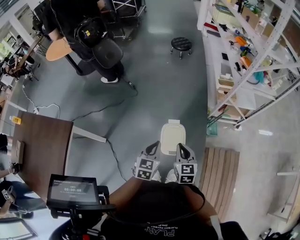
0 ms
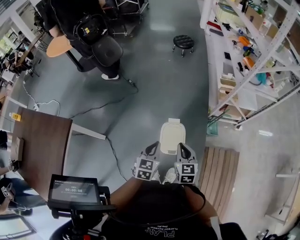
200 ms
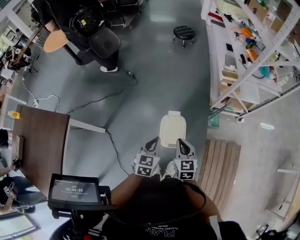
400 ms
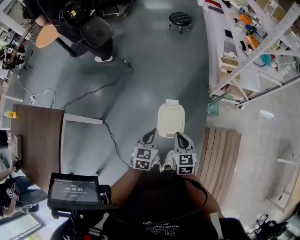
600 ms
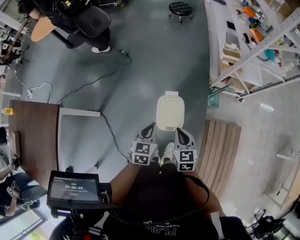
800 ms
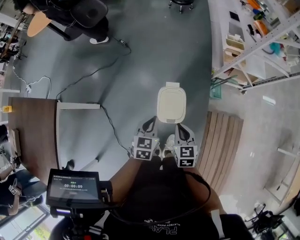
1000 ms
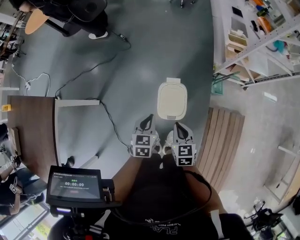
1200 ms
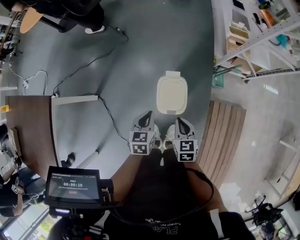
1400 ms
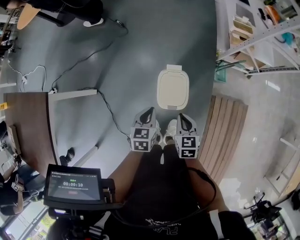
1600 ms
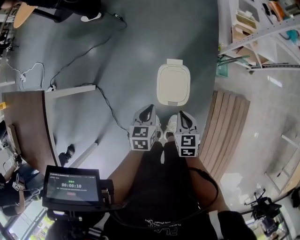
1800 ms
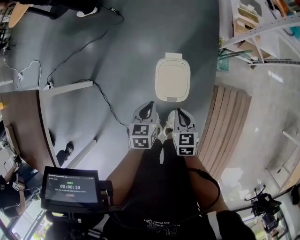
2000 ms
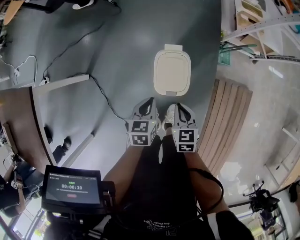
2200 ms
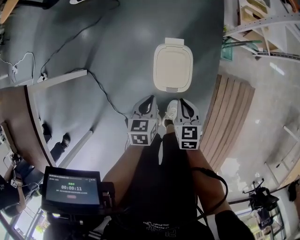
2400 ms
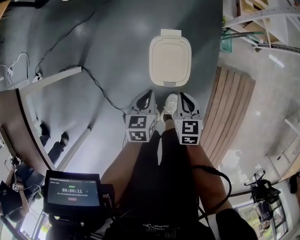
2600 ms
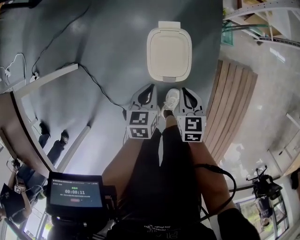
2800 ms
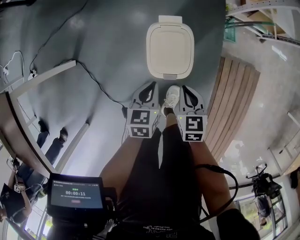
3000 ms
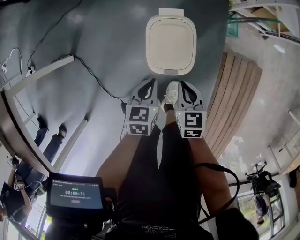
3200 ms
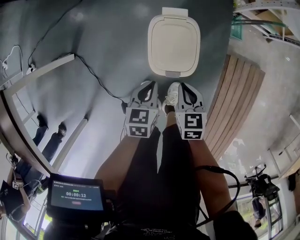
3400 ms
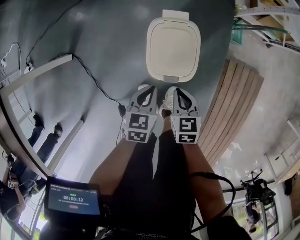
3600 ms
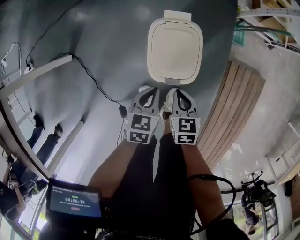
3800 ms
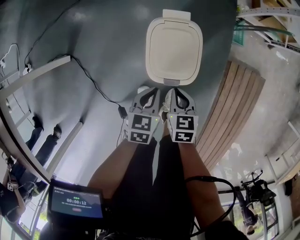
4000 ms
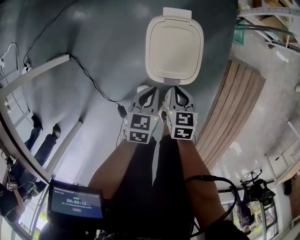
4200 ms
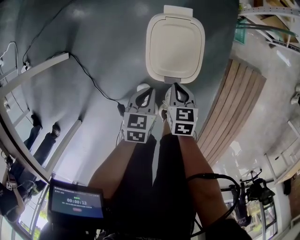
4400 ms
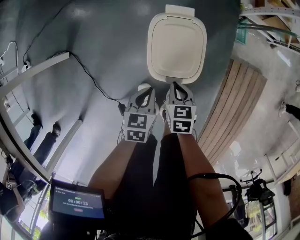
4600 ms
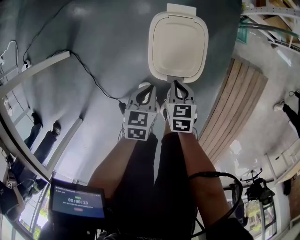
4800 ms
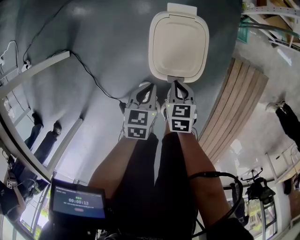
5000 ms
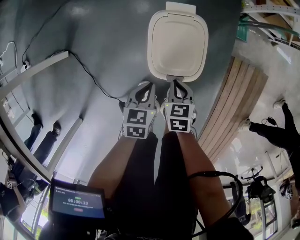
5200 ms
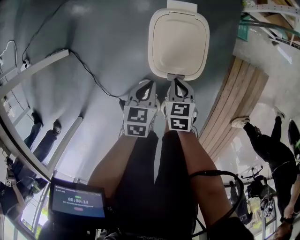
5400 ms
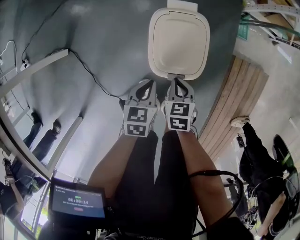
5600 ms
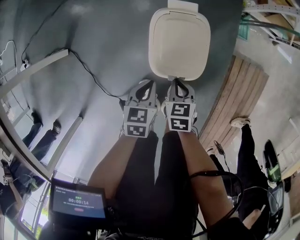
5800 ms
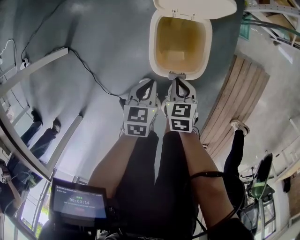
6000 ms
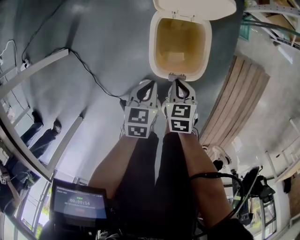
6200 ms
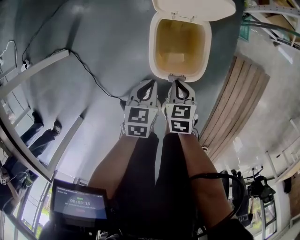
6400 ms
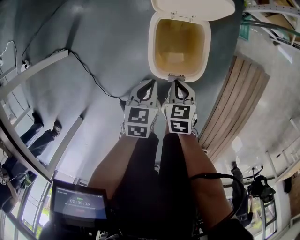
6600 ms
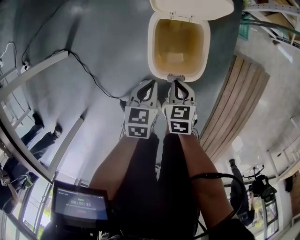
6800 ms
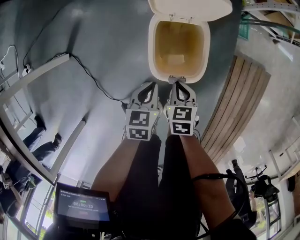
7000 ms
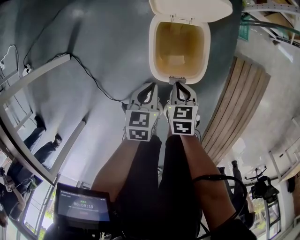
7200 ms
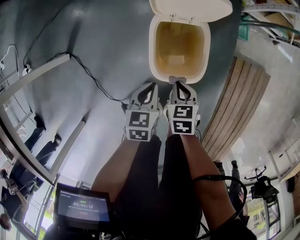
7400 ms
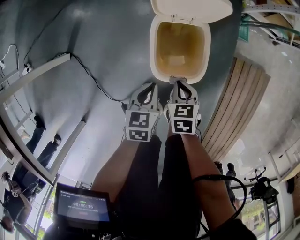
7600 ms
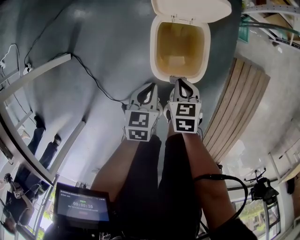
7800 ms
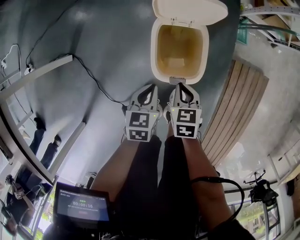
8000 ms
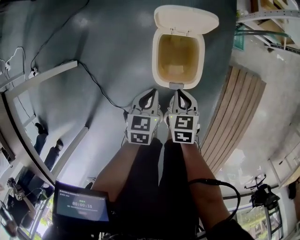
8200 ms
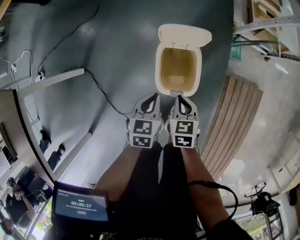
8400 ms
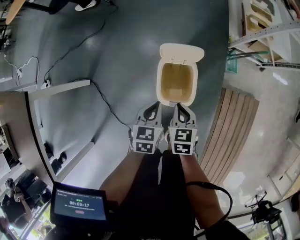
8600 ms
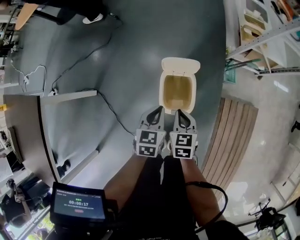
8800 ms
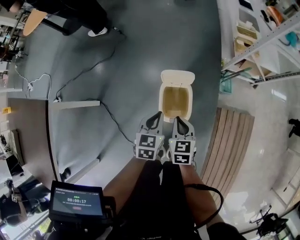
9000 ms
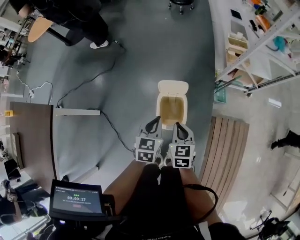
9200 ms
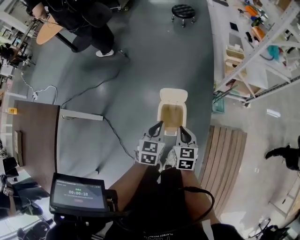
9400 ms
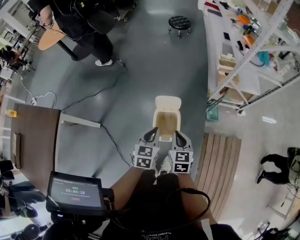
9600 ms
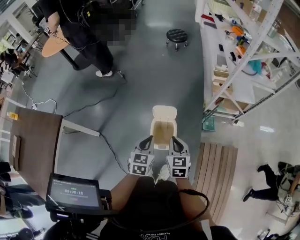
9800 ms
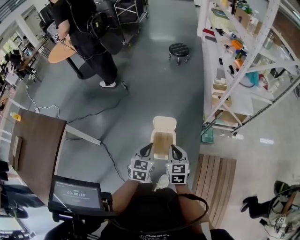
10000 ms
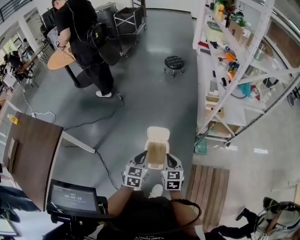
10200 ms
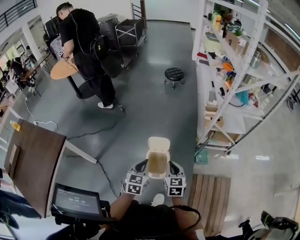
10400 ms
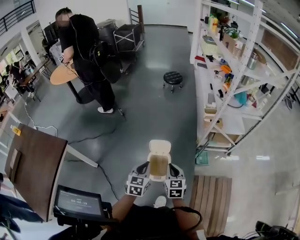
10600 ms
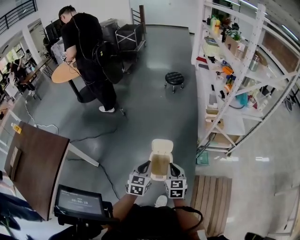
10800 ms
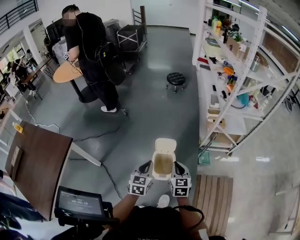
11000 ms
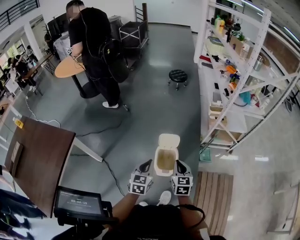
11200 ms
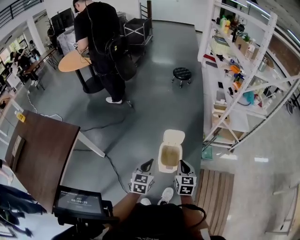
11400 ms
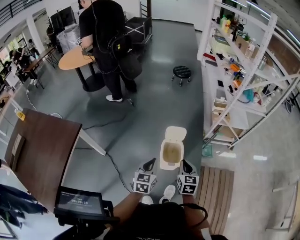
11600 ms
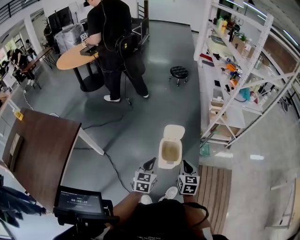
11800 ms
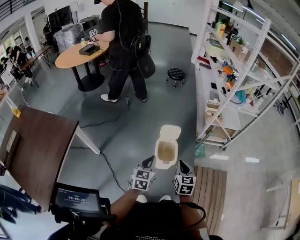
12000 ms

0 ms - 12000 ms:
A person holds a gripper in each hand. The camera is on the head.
0 ms - 1600 ms: Both grippers move downward, some 15 cm. The left gripper swivels roughly 20 degrees.
1600 ms - 3000 ms: Both grippers travel together downward, approximately 20 cm.
3000 ms - 4400 ms: Both grippers travel together downward, some 15 cm.
4400 ms - 6000 ms: The grippers make only small movements.
6000 ms - 7600 ms: Both grippers stay put.
7600 ms - 9000 ms: Both grippers move upward, approximately 30 cm. The right gripper changes its angle by approximately 20 degrees.
9000 ms - 10400 ms: The left gripper is displaced upward and backward by about 25 cm. Meanwhile the right gripper moves upward, roughly 20 cm.
10400 ms - 12000 ms: The grippers both shift backward and to the left by roughly 15 cm.

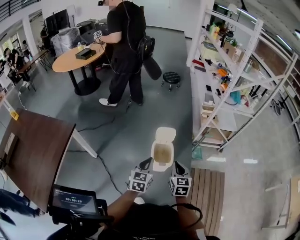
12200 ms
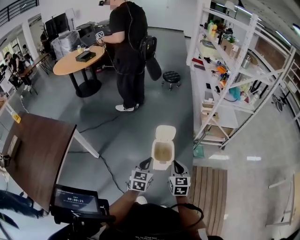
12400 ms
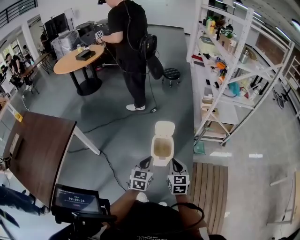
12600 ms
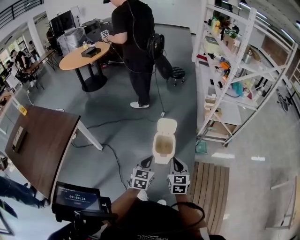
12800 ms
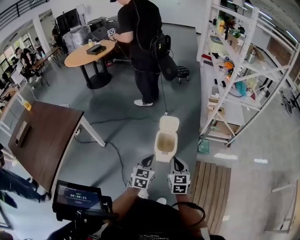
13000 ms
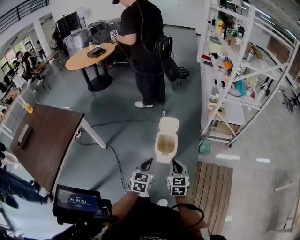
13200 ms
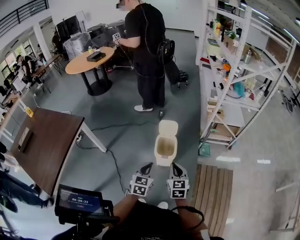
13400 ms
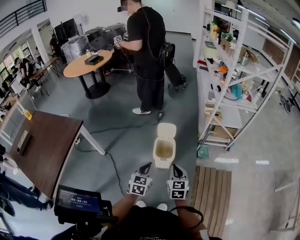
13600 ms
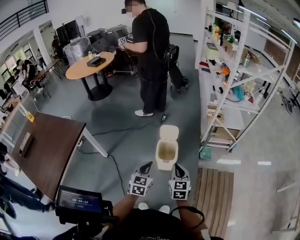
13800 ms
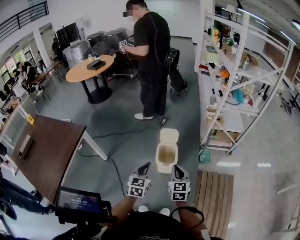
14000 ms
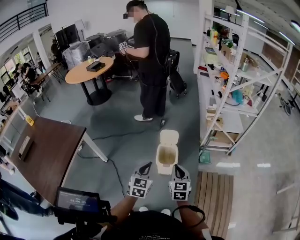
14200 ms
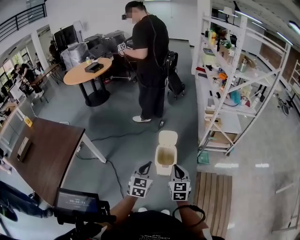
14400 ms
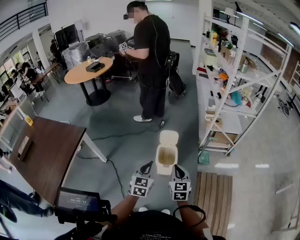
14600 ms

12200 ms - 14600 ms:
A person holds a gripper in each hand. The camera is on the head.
12200 ms - 13400 ms: The grippers both shift backward and to the right by roughly 10 cm.
13400 ms - 14600 ms: The two grippers go about 5 cm upward.

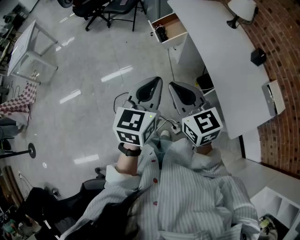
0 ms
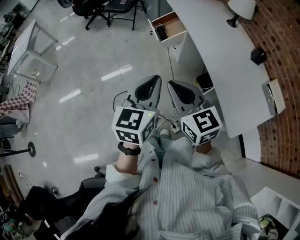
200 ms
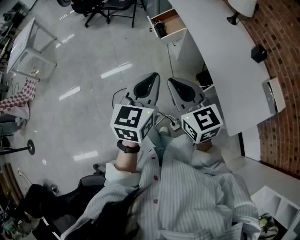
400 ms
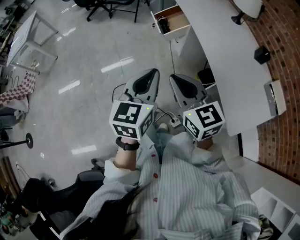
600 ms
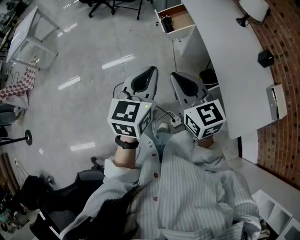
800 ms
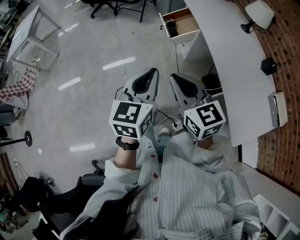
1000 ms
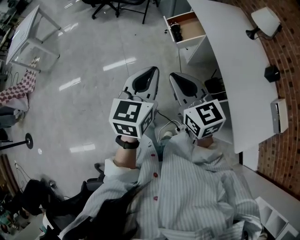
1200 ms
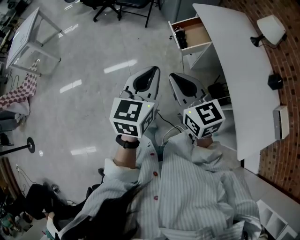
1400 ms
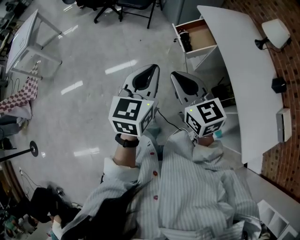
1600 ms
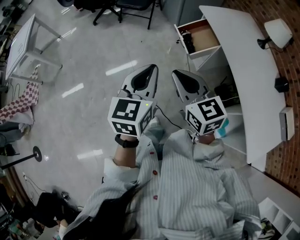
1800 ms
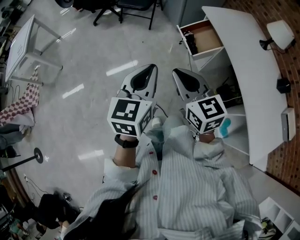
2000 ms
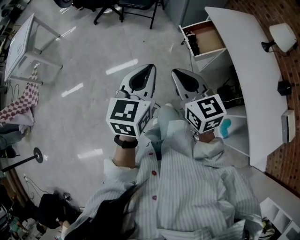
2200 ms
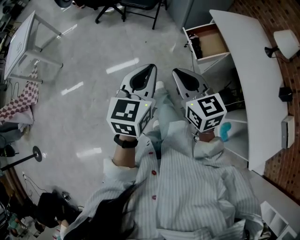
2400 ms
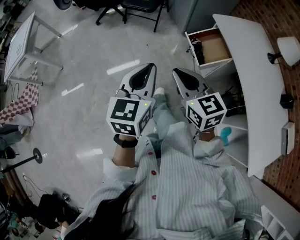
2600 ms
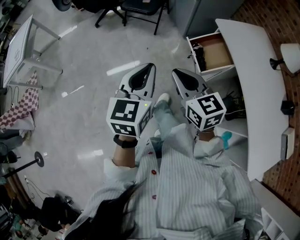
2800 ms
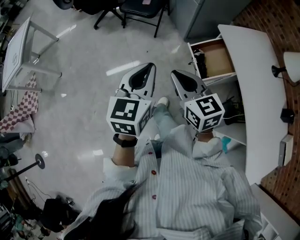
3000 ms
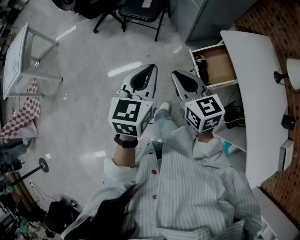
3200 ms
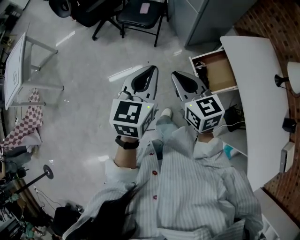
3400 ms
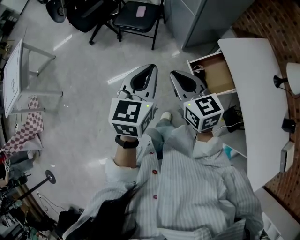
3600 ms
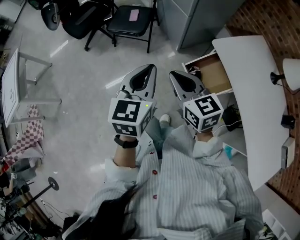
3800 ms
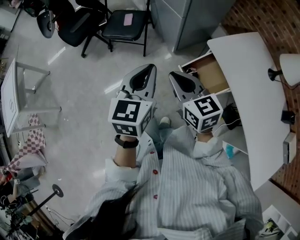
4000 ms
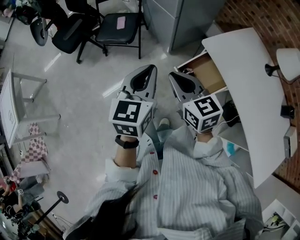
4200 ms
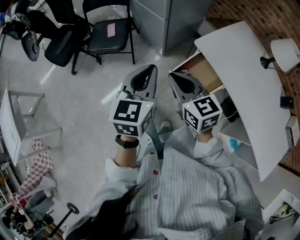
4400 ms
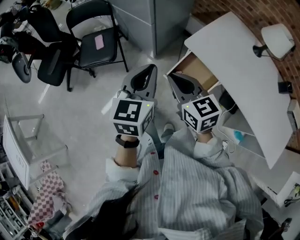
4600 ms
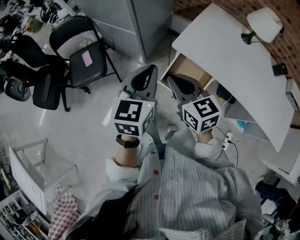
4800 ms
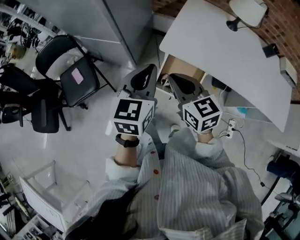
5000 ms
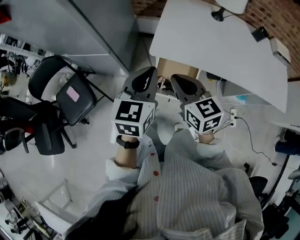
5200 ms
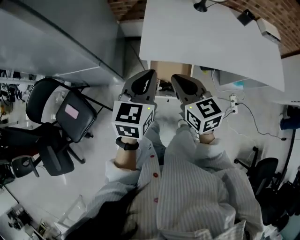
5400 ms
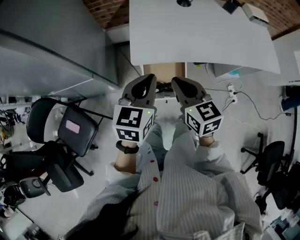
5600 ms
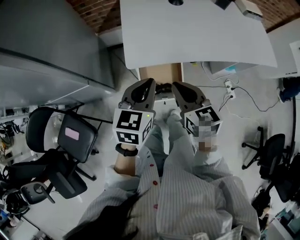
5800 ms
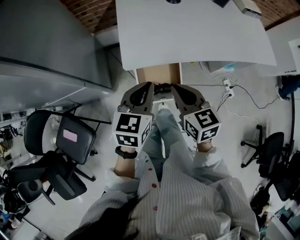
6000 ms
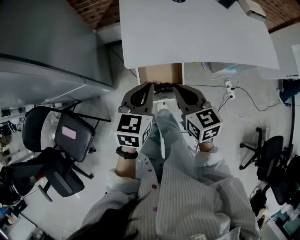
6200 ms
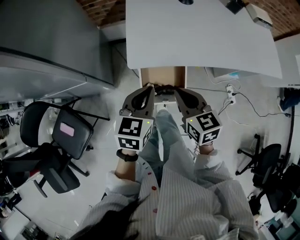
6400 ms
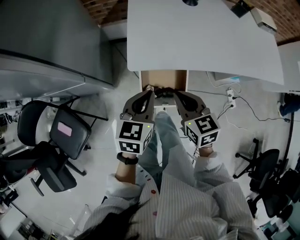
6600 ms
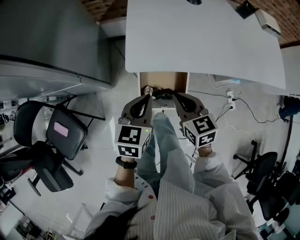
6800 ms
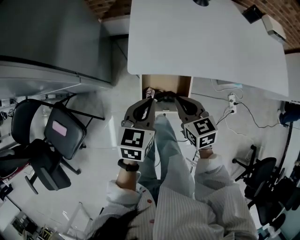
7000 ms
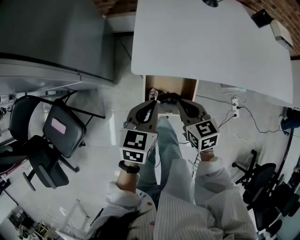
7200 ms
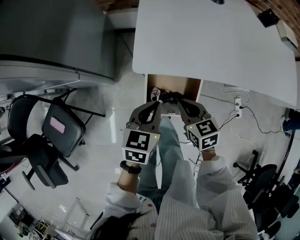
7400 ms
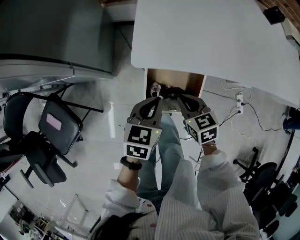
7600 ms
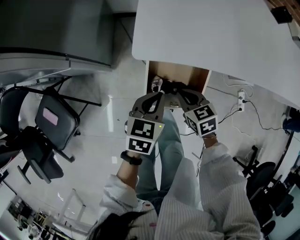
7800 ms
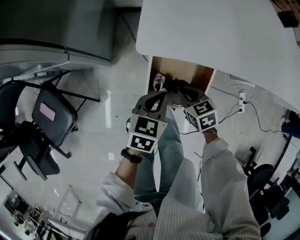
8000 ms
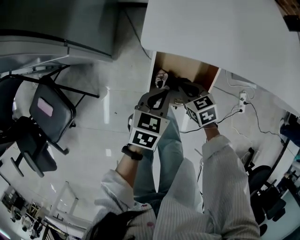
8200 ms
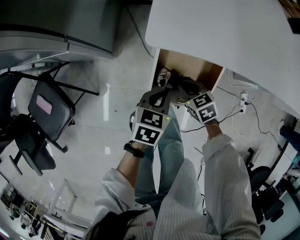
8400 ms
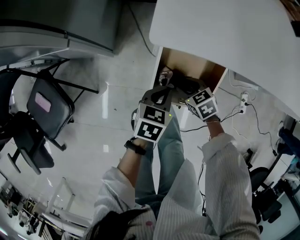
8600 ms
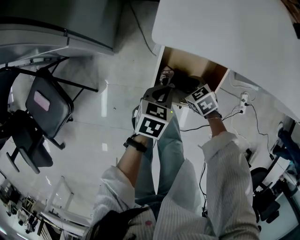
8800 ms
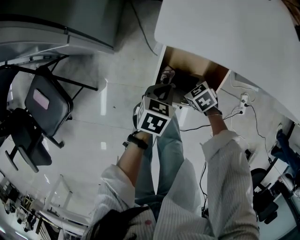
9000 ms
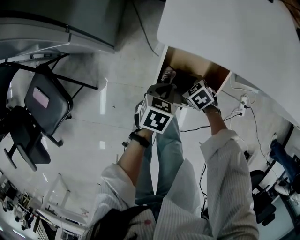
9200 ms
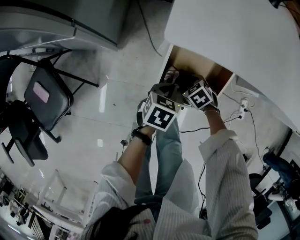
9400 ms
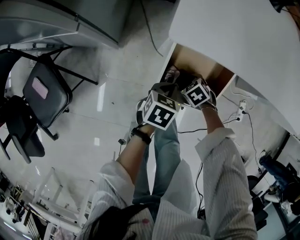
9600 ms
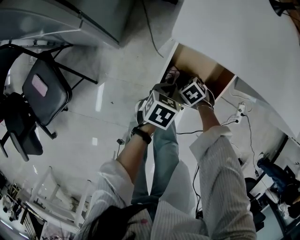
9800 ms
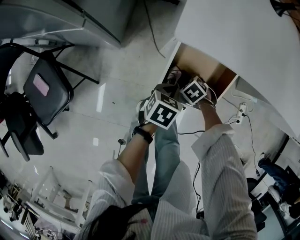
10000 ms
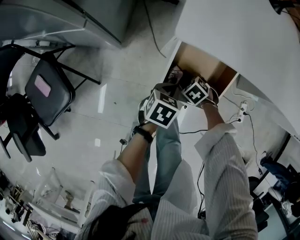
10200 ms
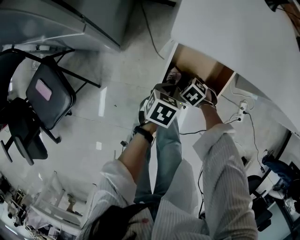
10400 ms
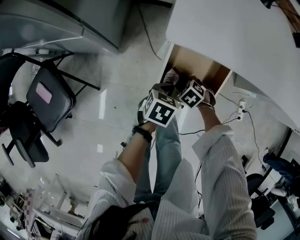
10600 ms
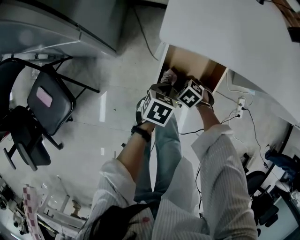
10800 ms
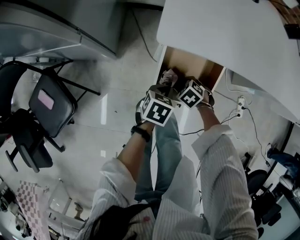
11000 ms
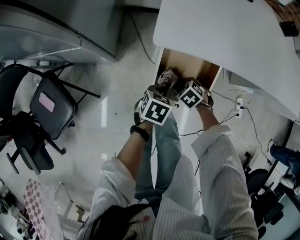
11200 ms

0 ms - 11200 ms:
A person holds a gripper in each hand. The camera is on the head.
0 ms - 1600 ms: Both grippers move forward and to the left, about 25 cm.
1600 ms - 3200 ms: Both grippers move forward, approximately 35 cm.
3200 ms - 4800 ms: The right gripper ends up roughly 30 cm from where it was, and rotates roughly 40 degrees. The left gripper ends up about 35 cm from where it was, and rotates roughly 40 degrees.
4800 ms - 6400 ms: The right gripper shifts by roughly 15 cm, and swivels approximately 40 degrees. Meanwhile the left gripper shifts by approximately 20 cm, and turns by roughly 40 degrees.
6400 ms - 8000 ms: Both grippers travel together downward, some 30 cm. The right gripper changes its angle by about 30 degrees.
8000 ms - 9600 ms: The two grippers go about 15 cm downward. The right gripper turns by approximately 30 degrees, and opens.
9600 ms - 11200 ms: The right gripper travels upward by approximately 5 cm, and closes its fingers.
